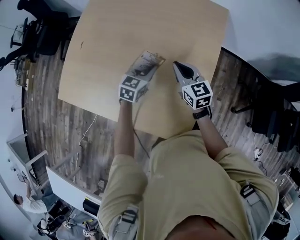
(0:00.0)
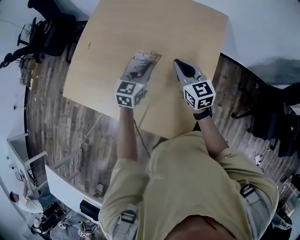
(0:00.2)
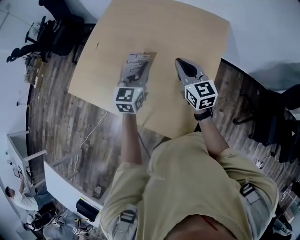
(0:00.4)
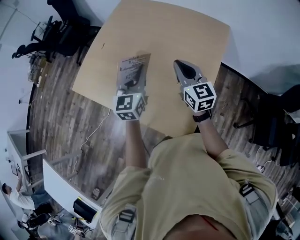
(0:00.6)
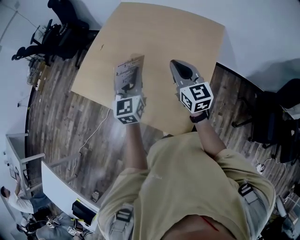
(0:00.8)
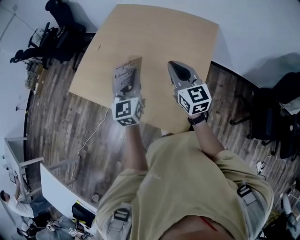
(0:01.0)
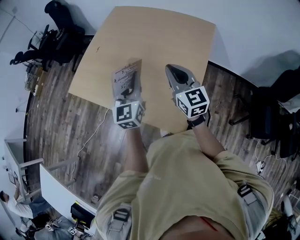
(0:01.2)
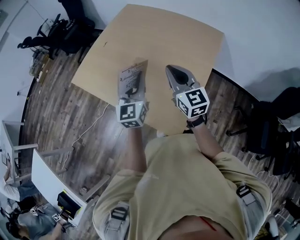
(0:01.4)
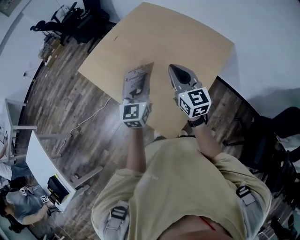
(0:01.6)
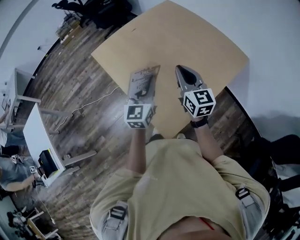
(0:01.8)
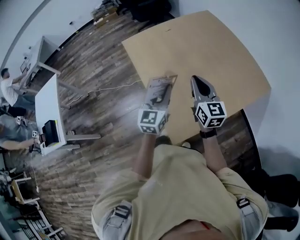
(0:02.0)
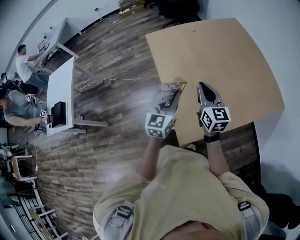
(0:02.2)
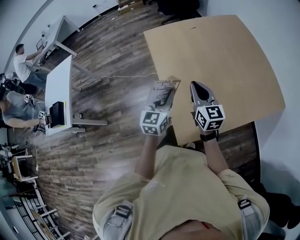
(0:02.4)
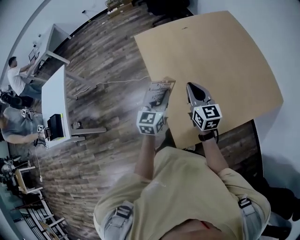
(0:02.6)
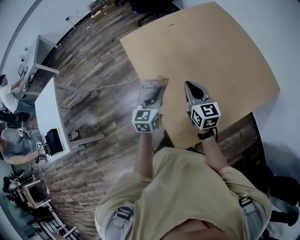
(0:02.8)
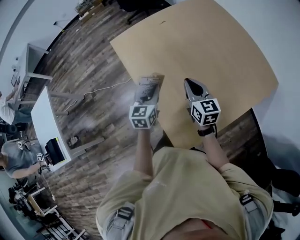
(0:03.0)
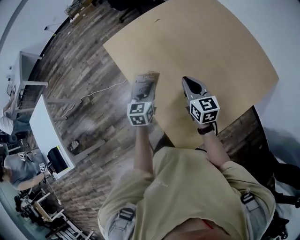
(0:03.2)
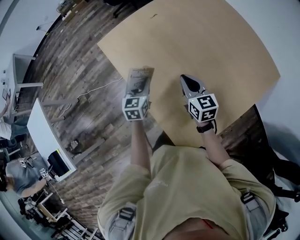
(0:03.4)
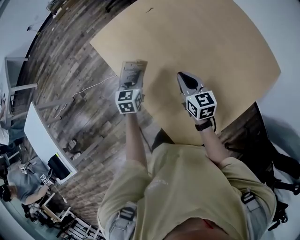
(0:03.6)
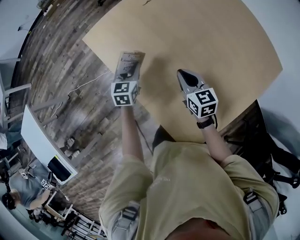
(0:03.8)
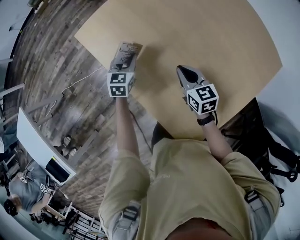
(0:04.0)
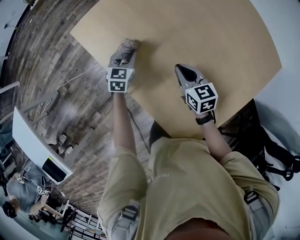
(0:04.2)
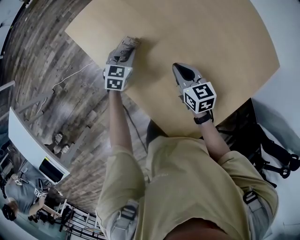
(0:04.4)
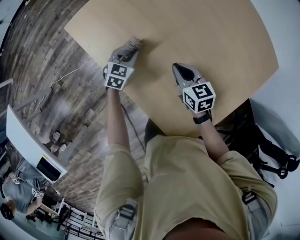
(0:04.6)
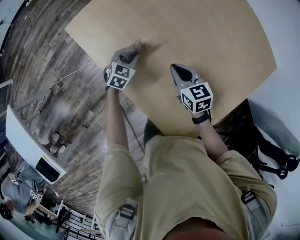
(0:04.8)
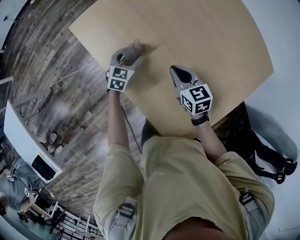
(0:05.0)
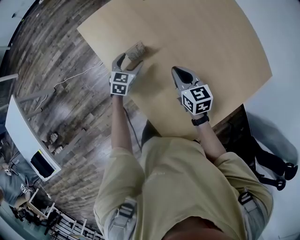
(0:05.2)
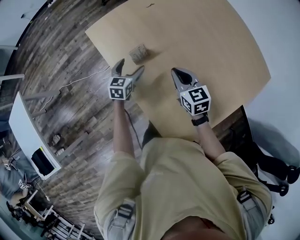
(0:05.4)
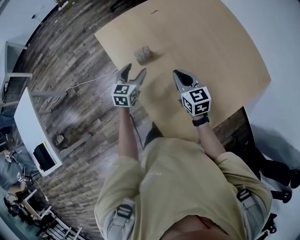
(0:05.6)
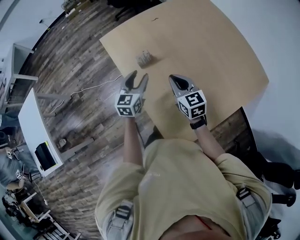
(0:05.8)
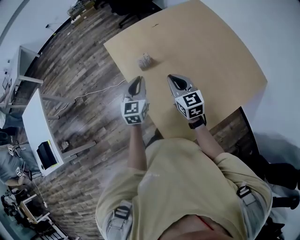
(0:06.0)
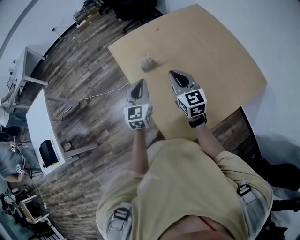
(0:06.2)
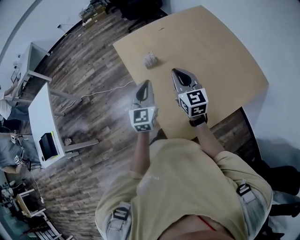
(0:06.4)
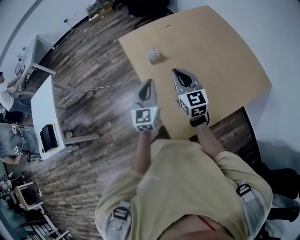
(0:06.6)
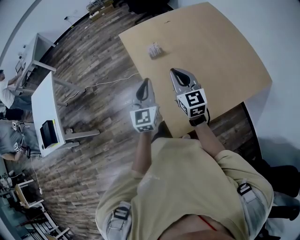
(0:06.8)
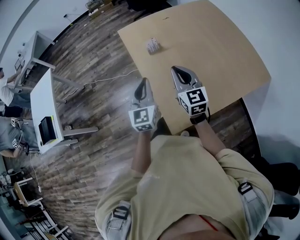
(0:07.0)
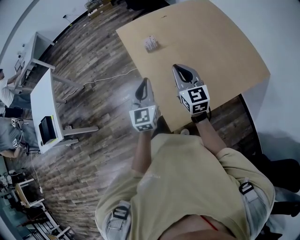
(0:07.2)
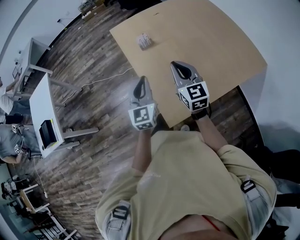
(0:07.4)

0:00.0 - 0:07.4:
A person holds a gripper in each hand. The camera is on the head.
0:00.0 - 0:01.4: The two grippers go roughly 25 cm upward and backward. The left gripper tips its fingers upward by roughly 30 degrees, while the right gripper rotates about 20 degrees.
0:01.4 - 0:03.0: The left gripper ends up about 20 cm from where it was, and swivels about 30 degrees. The right gripper changes place by some 20 cm, and swivels approximately 30 degrees.
0:03.0 - 0:04.4: The right gripper heads downward, forward and to the left, covering some 20 cm. The left gripper heads forward and downward, covering some 30 cm, and changes its angle by some 30 degrees.
0:04.4 - 0:06.0: The two grippers go approximately 30 cm upward and backward. The right gripper changes its angle by approximately 30 degrees, while the left gripper changes its angle by some 30 degrees, and opens, then closes once more.
0:06.0 - 0:07.4: Both grippers travel together backward, approximately 20 cm.

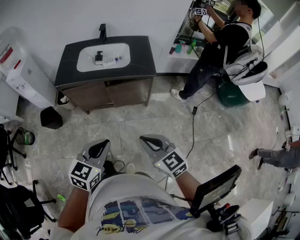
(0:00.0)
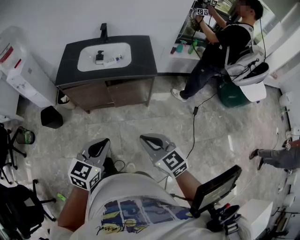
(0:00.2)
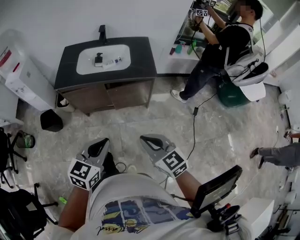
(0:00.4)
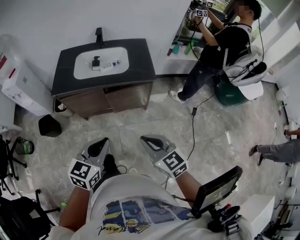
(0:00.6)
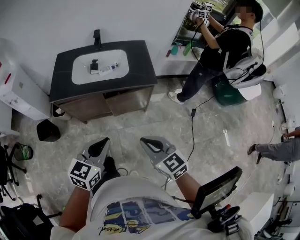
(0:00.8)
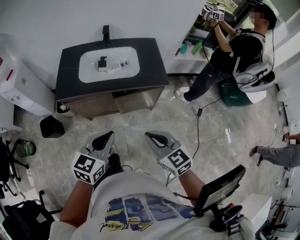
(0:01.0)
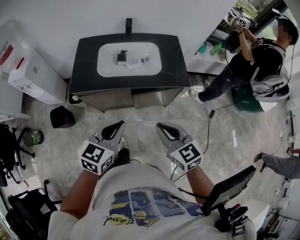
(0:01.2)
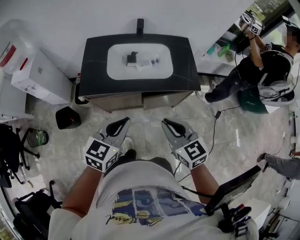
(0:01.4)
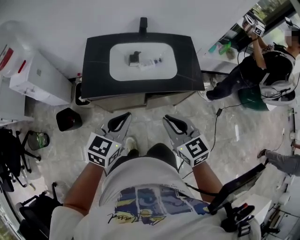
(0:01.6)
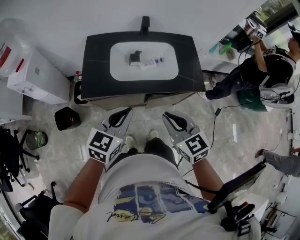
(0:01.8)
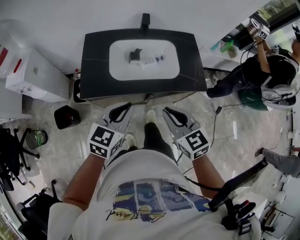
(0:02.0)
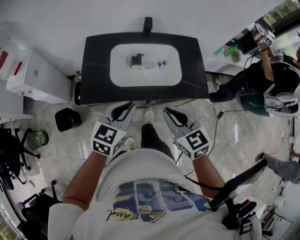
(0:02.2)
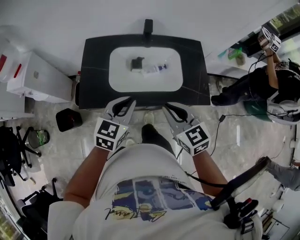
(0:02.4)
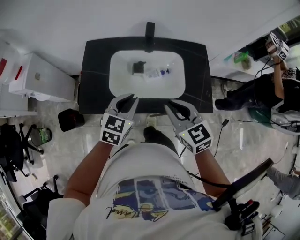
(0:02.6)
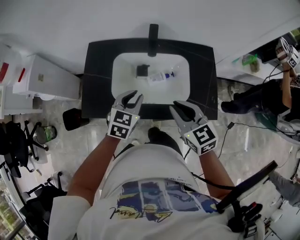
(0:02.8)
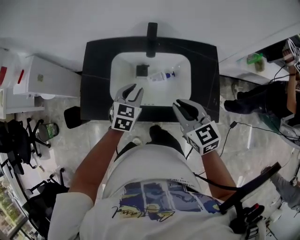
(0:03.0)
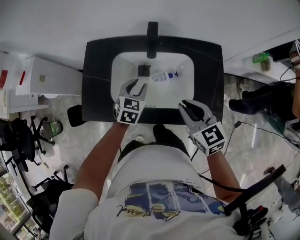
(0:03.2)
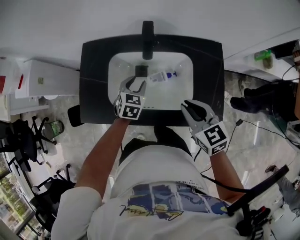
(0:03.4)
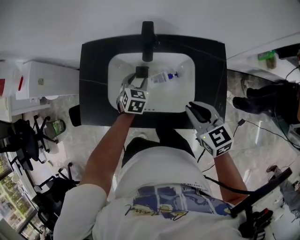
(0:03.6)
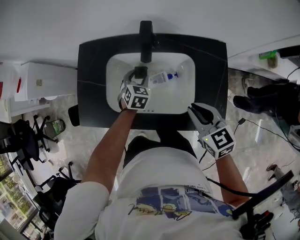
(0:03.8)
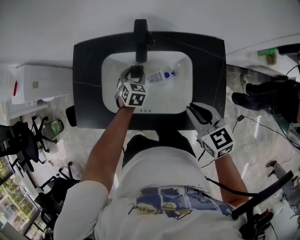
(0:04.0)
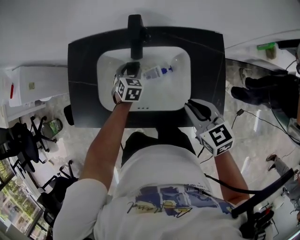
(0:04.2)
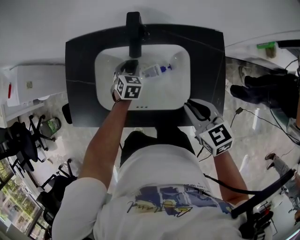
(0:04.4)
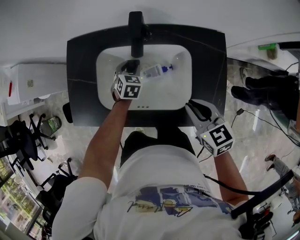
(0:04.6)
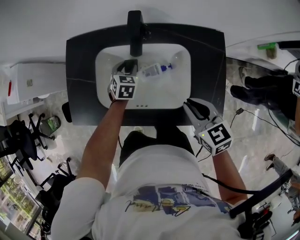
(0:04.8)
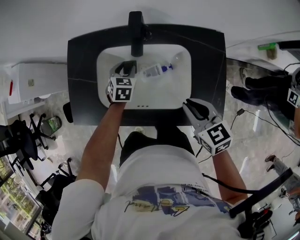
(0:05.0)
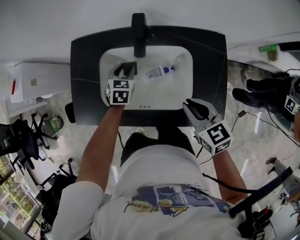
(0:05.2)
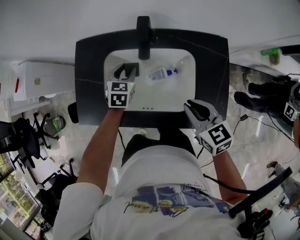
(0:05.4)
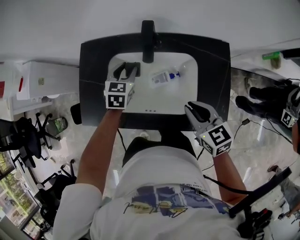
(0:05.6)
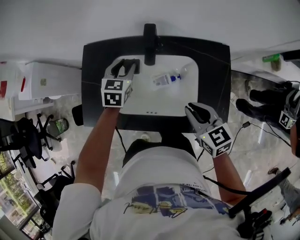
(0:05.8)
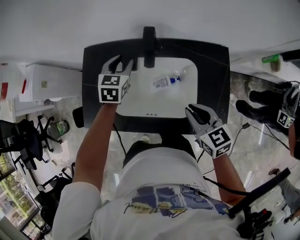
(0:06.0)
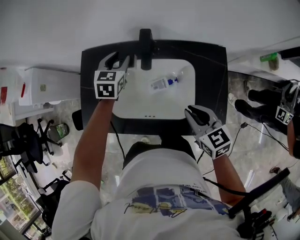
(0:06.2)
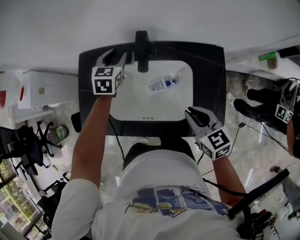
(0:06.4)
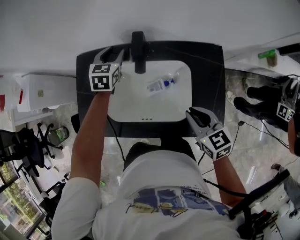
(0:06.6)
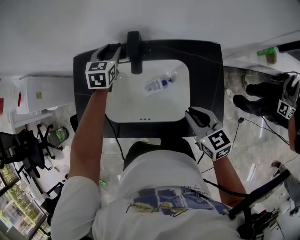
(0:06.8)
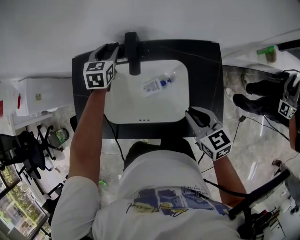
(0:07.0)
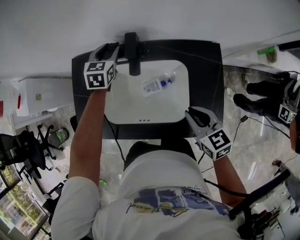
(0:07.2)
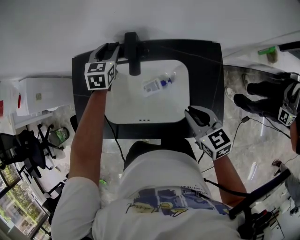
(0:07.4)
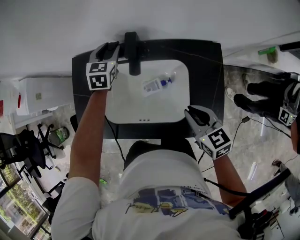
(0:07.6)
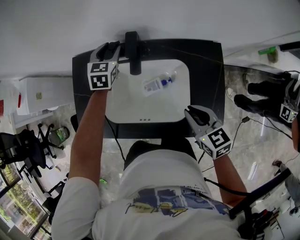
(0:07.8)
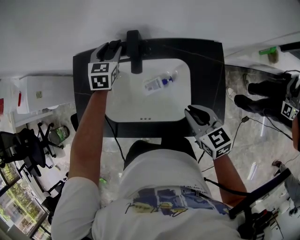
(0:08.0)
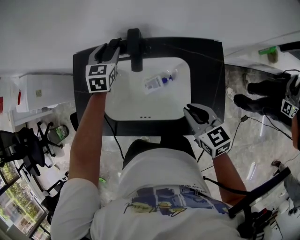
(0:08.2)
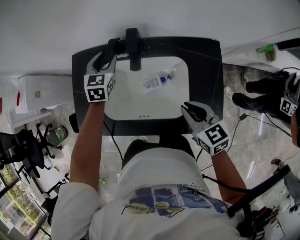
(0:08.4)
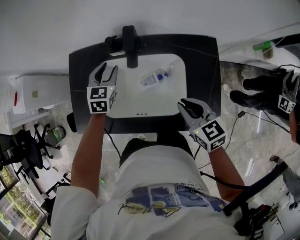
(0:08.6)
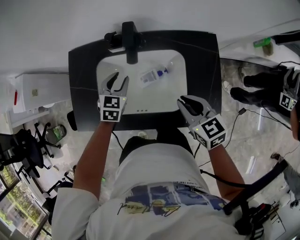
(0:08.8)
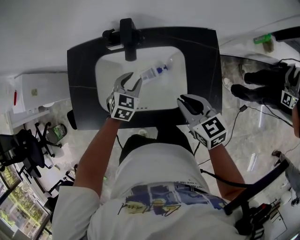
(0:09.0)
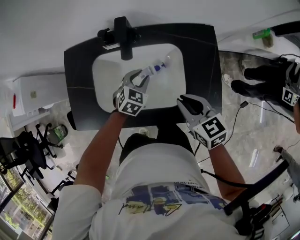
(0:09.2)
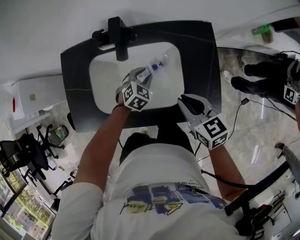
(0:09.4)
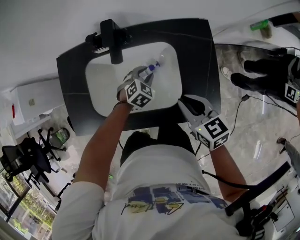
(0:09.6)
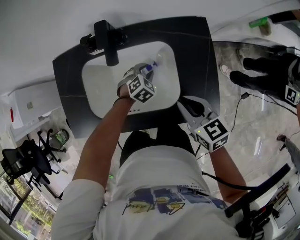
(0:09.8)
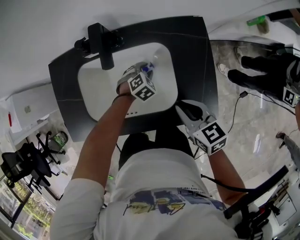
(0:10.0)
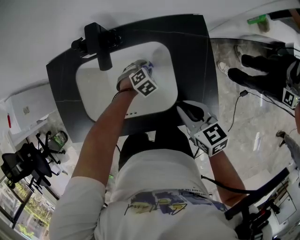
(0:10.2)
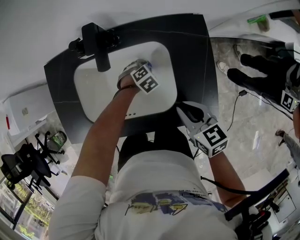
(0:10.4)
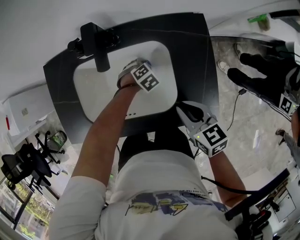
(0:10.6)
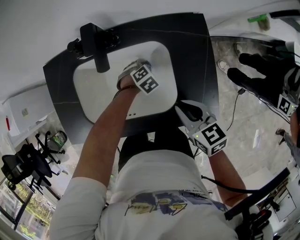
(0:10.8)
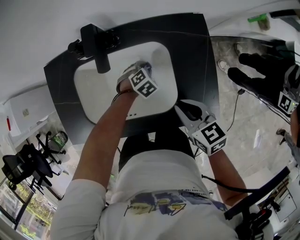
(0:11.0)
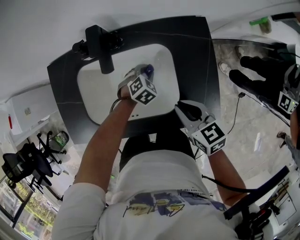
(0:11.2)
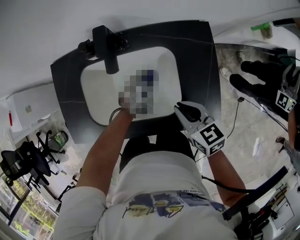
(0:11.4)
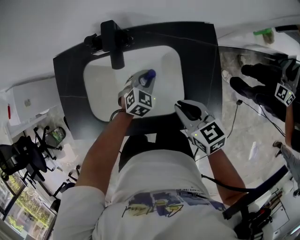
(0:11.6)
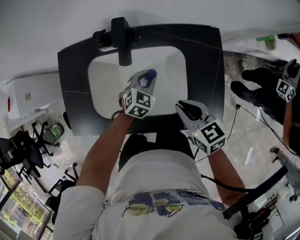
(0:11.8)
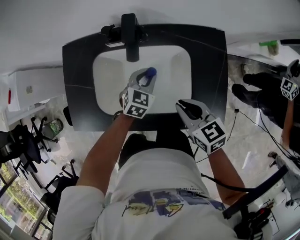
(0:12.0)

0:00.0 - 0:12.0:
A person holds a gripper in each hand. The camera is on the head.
0:00.0 - 0:01.6: Both grippers travel together forward and to the left, approximately 35 cm.
0:01.6 - 0:03.0: The right gripper shifts about 25 cm forward. Meanwhile the left gripper shifts approximately 35 cm forward and downward, rotates approximately 20 degrees, and opens its fingers.
0:03.0 - 0:04.4: The right gripper moves to the right and downward, approximately 10 cm, while the left gripper shifts some 20 cm downward and forward.
0:04.4 - 0:06.0: The left gripper travels upward by about 15 cm.
0:06.0 - 0:07.6: The left gripper shifts about 10 cm forward.
0:07.6 - 0:09.0: The left gripper is displaced backward and downward by approximately 20 cm, and swivels roughly 20 degrees.
0:09.0 - 0:10.4: The right gripper ends up approximately 5 cm from where it was, while the left gripper heads downward and to the right, covering about 20 cm, and turns by some 40 degrees.
0:10.4 - 0:12.0: The right gripper moves approximately 5 cm. Meanwhile the left gripper travels upward by roughly 15 cm, and points its fingers some 30 degrees further upward.

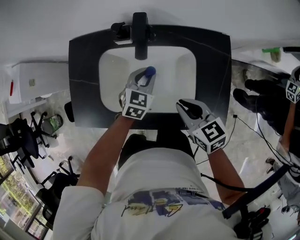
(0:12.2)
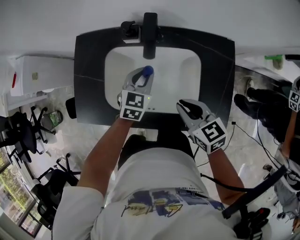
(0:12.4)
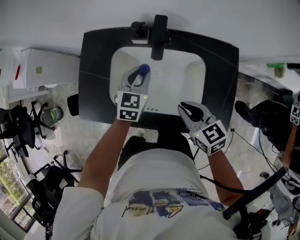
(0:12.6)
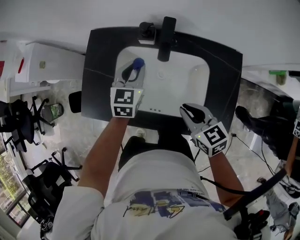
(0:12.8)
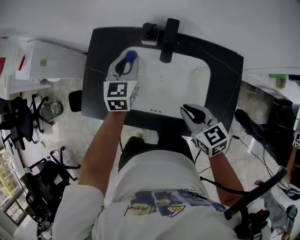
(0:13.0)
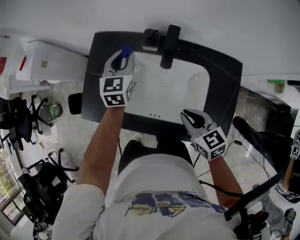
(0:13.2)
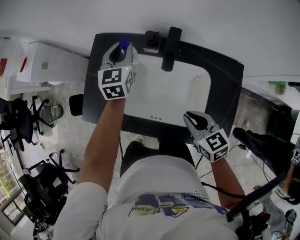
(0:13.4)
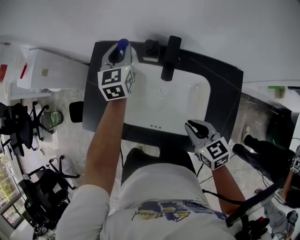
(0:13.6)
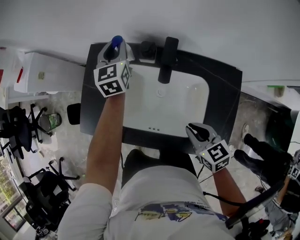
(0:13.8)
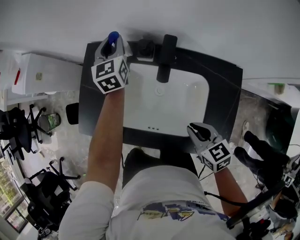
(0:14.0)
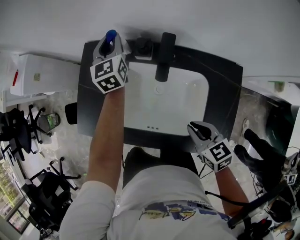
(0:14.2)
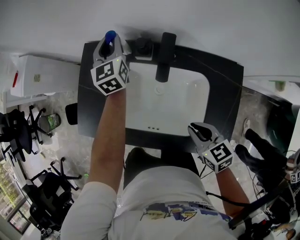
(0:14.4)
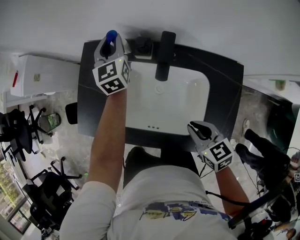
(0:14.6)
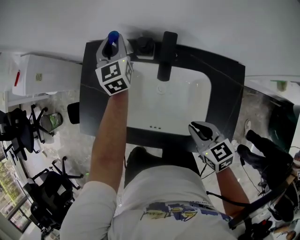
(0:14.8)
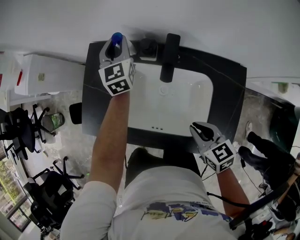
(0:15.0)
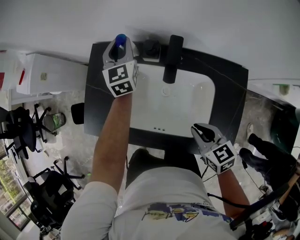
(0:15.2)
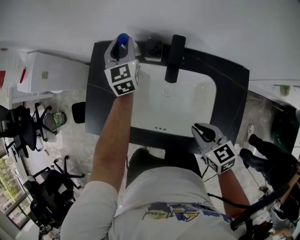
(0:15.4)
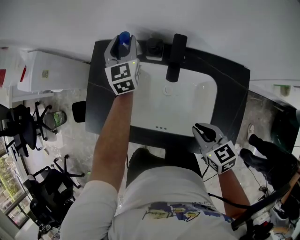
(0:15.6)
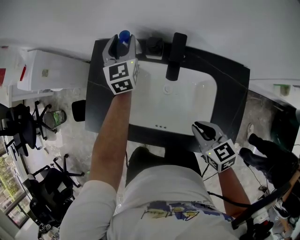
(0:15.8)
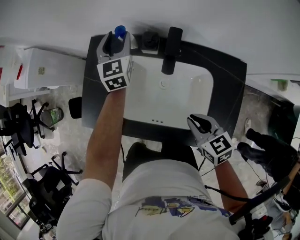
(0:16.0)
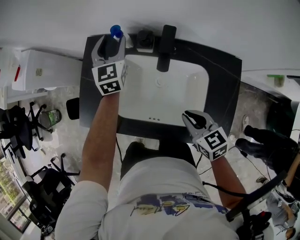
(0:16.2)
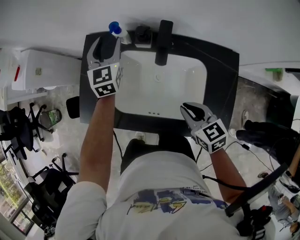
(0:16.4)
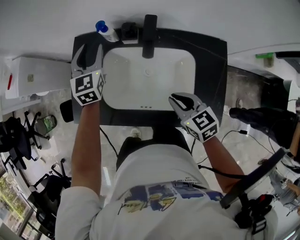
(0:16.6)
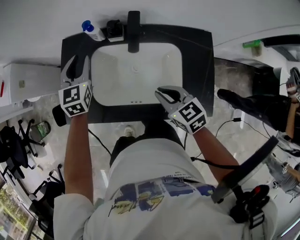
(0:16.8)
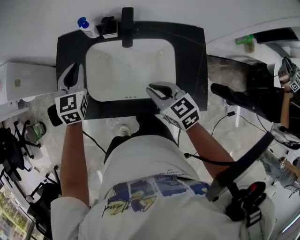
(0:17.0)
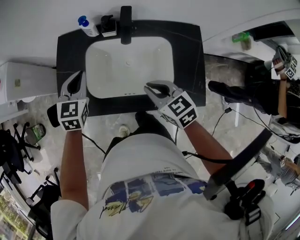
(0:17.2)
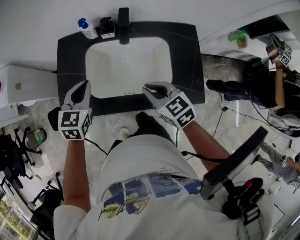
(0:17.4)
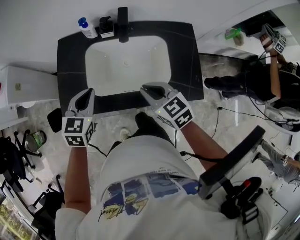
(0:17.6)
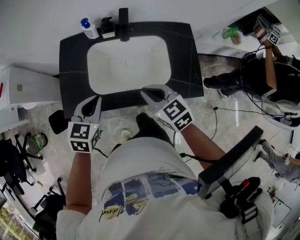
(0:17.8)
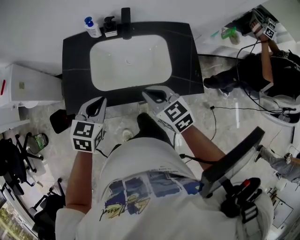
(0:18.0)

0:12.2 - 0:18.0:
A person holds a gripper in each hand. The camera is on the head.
0:12.2 - 0:13.6: The left gripper moves forward, upward and to the left, some 30 cm, and swivels about 40 degrees.
0:13.6 - 0:15.0: The grippers stay close to where they were, moving slightly.
0:15.0 - 0:16.6: The left gripper travels backward and to the left by some 10 cm, and opens its fingers.
0:16.6 - 0:18.0: The right gripper travels backward, to the left and upward by about 15 cm, while the left gripper heads backward, covering roughly 30 cm, changes its angle by some 40 degrees, and closes.
